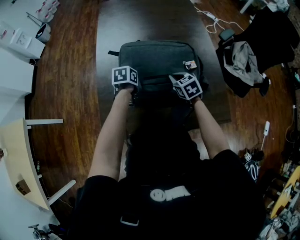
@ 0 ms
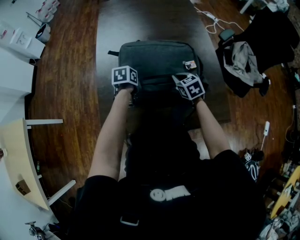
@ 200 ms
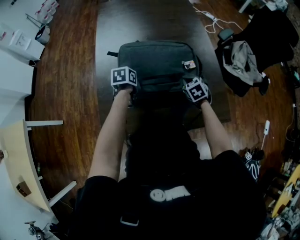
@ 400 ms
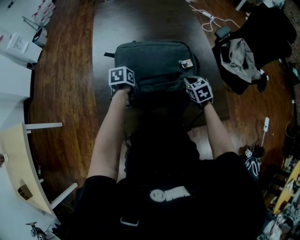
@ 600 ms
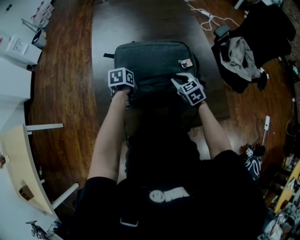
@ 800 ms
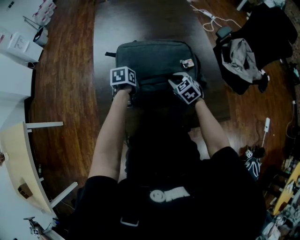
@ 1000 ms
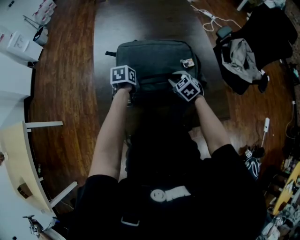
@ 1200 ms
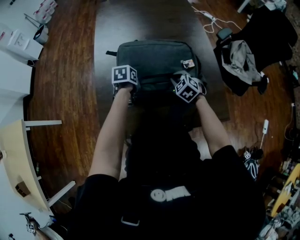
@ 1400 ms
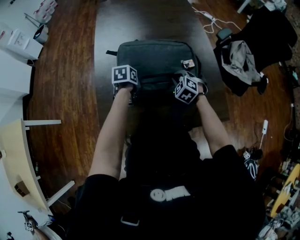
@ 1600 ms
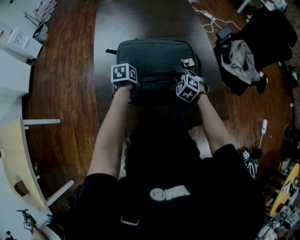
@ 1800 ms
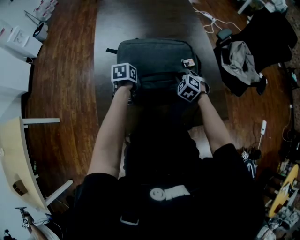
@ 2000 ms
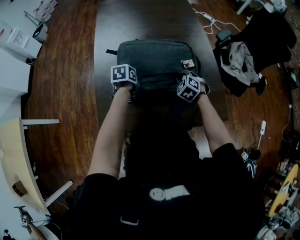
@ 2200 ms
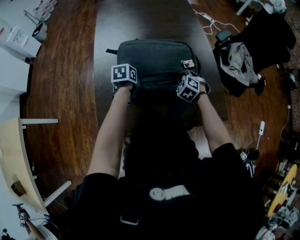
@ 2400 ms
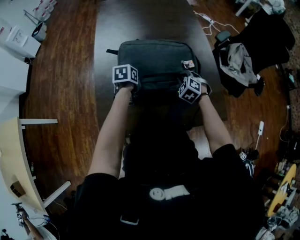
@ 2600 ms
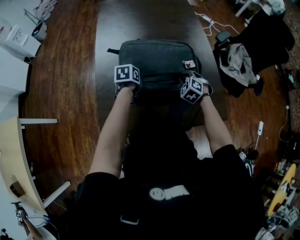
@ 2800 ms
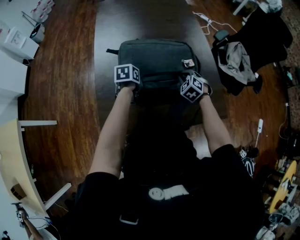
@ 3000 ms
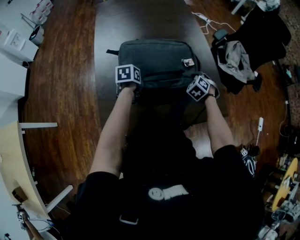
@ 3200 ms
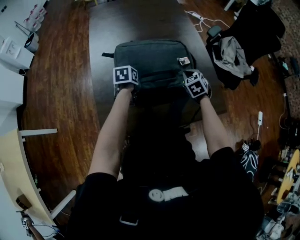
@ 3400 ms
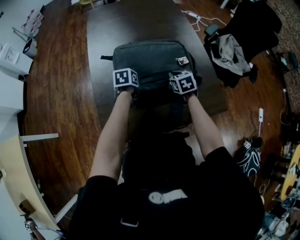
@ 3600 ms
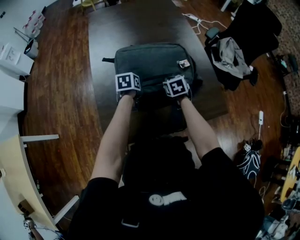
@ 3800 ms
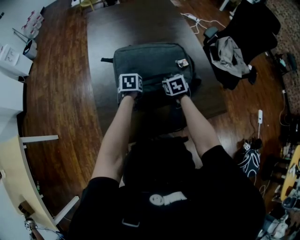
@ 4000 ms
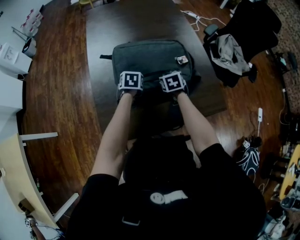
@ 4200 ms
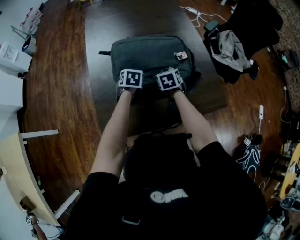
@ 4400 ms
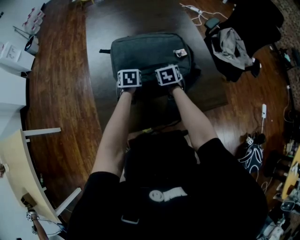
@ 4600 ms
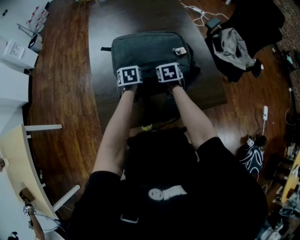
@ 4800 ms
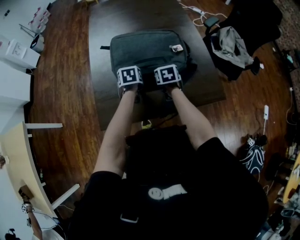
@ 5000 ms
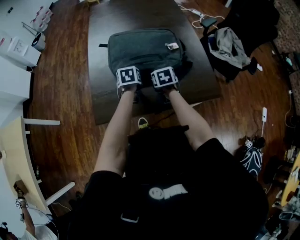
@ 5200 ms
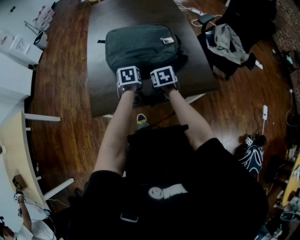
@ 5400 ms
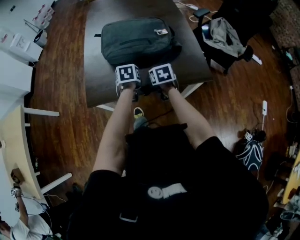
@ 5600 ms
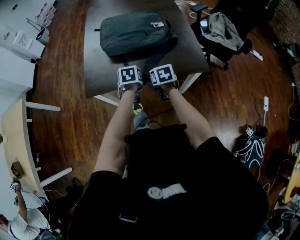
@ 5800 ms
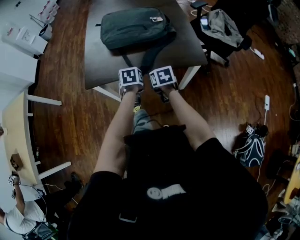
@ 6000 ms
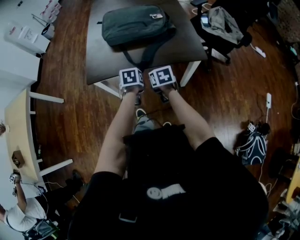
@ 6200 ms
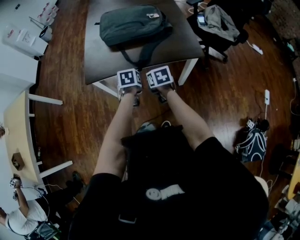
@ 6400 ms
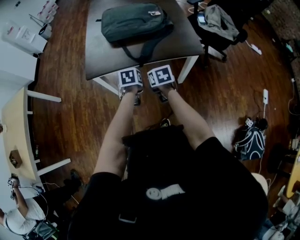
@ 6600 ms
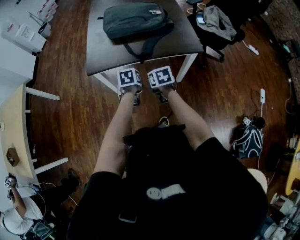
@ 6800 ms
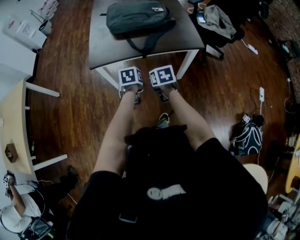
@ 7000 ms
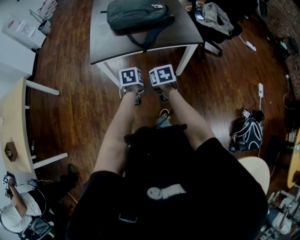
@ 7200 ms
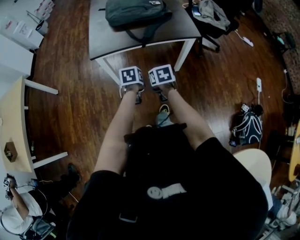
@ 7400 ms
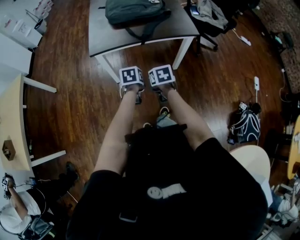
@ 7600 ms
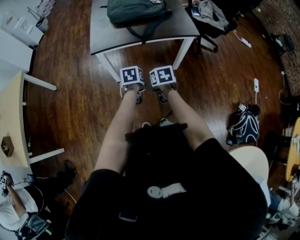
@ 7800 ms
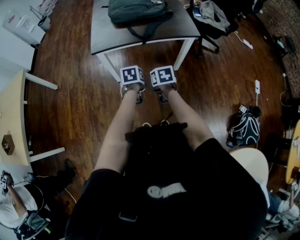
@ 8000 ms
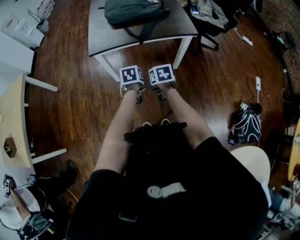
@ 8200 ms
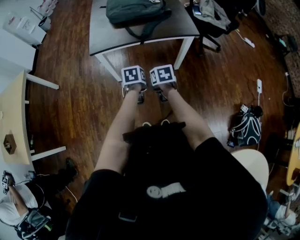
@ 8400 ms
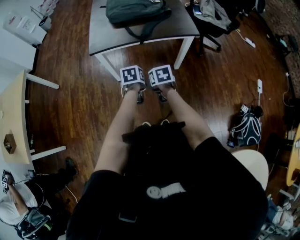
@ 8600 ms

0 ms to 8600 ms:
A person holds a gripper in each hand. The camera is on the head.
0 ms to 1400 ms: The right gripper reaches approximately 10 cm to the right, then returns, and swivels approximately 30 degrees.
1400 ms to 2800 ms: The grippers stay close to where they were, moving slightly.
2800 ms to 4400 ms: The left gripper swivels approximately 30 degrees. The right gripper is displaced to the left by about 5 cm, and rolls clockwise, seen from behind, by approximately 50 degrees.
4400 ms to 5800 ms: The grippers both shift backward by some 30 cm. The right gripper changes its angle by roughly 20 degrees.
5800 ms to 7200 ms: The grippers both shift backward by some 25 cm.
7200 ms to 8600 ms: Both grippers travel together backward, roughly 5 cm.

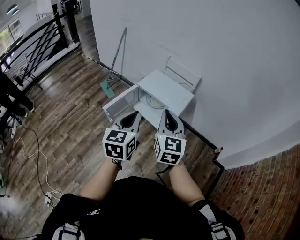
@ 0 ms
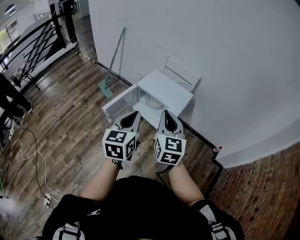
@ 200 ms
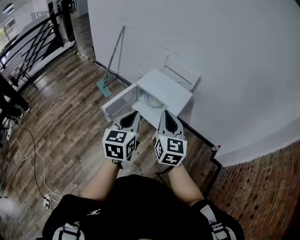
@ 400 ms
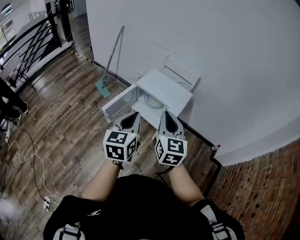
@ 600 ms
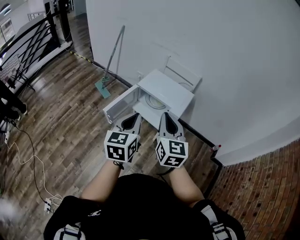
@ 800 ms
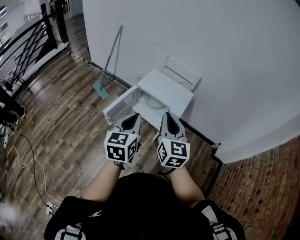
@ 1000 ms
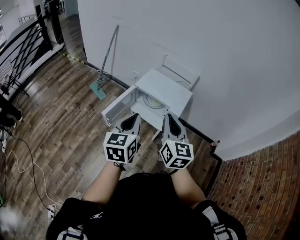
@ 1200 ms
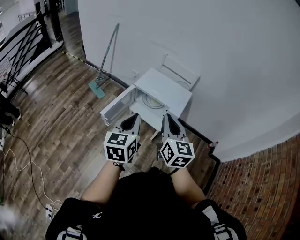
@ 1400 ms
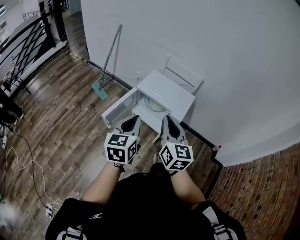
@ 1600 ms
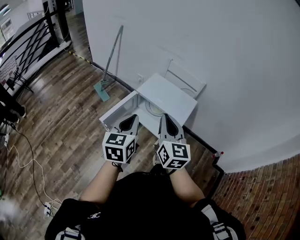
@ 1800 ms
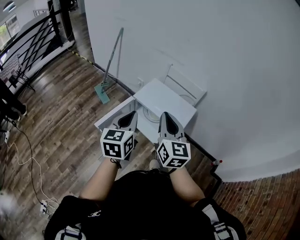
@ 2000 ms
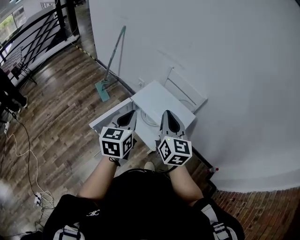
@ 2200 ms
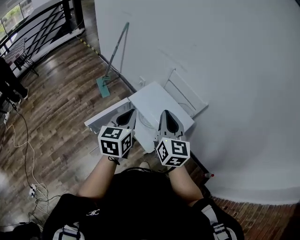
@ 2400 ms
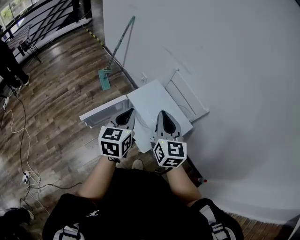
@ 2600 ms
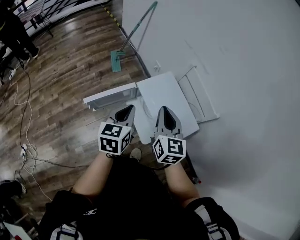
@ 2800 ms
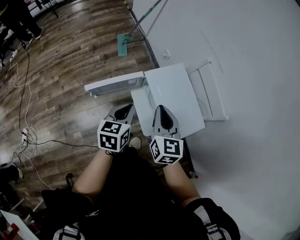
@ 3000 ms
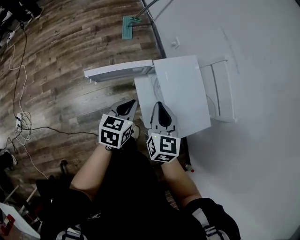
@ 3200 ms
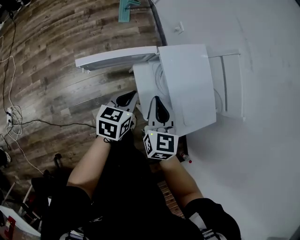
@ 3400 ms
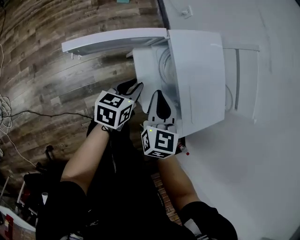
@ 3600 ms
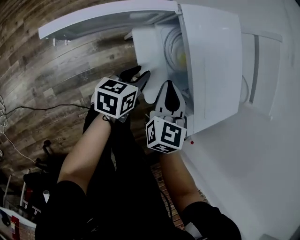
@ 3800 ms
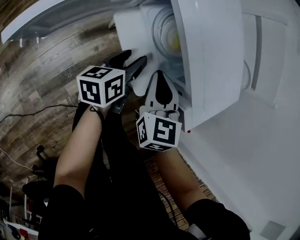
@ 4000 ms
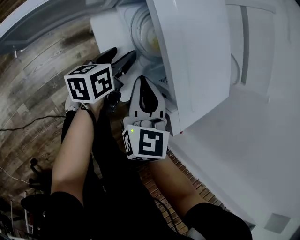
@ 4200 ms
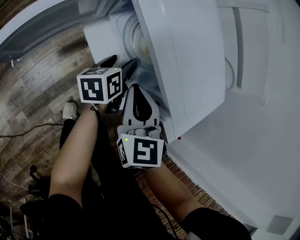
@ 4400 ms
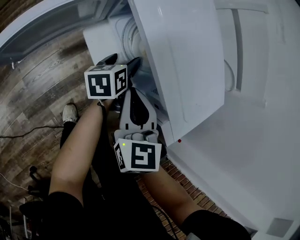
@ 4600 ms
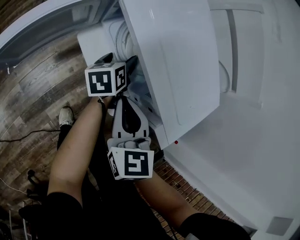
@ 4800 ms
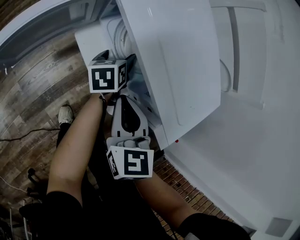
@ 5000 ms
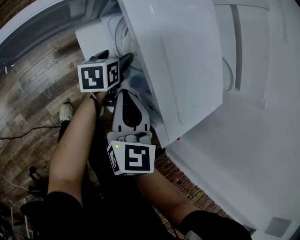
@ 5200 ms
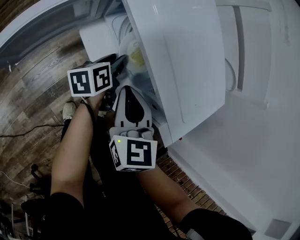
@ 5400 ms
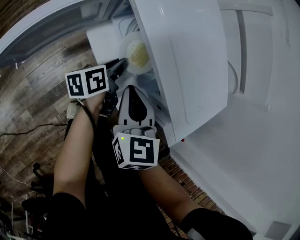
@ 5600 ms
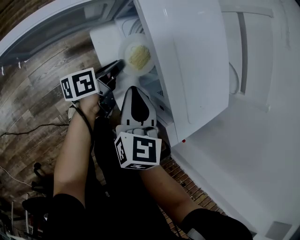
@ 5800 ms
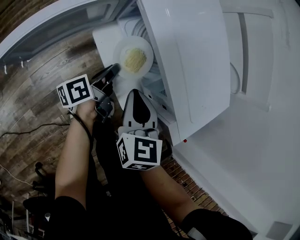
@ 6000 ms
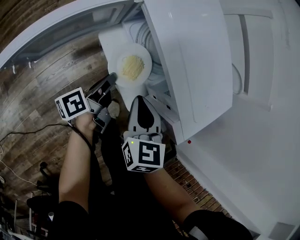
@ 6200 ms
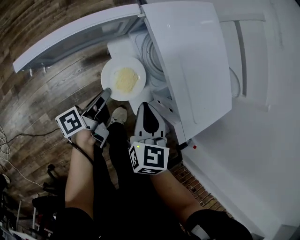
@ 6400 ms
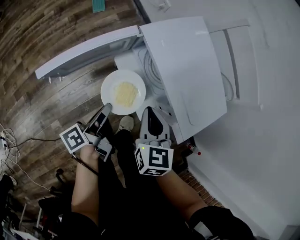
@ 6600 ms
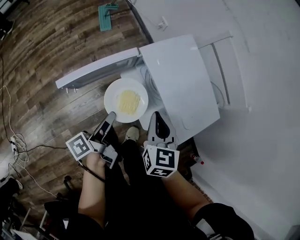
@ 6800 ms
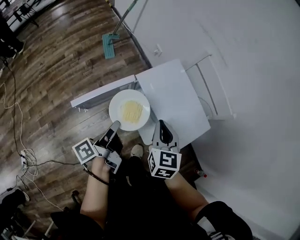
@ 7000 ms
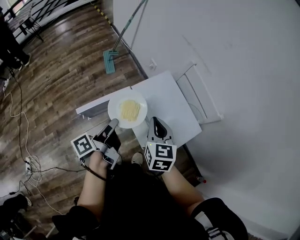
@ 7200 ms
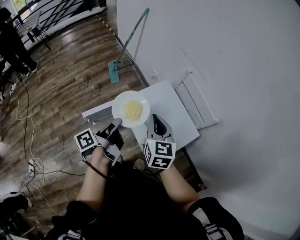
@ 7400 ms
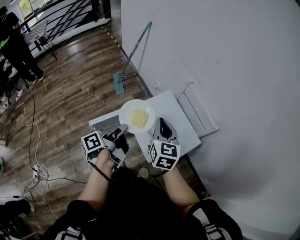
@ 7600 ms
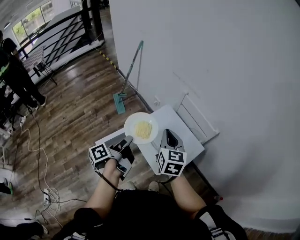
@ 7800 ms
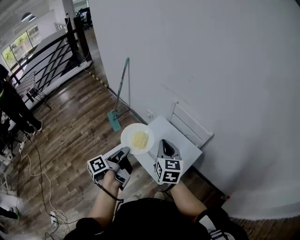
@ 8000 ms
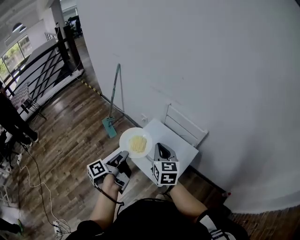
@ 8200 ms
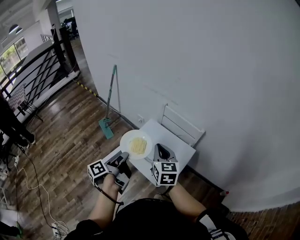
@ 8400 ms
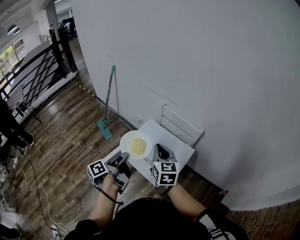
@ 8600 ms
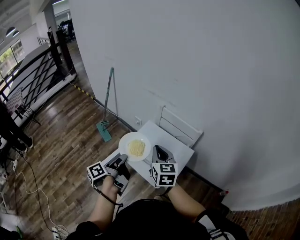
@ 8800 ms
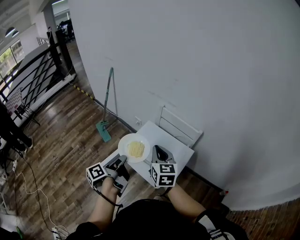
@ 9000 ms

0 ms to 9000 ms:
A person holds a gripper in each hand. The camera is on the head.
0 ms to 1600 ms: The right gripper heads to the left, covering about 5 cm; the left gripper is displaced to the left and forward by about 10 cm.
1600 ms to 3000 ms: The right gripper shifts by some 30 cm, and turns by approximately 30 degrees; the left gripper changes place by about 25 cm, and turns by about 30 degrees.
3000 ms to 4400 ms: The grippers both shift downward by about 35 cm. The right gripper rotates roughly 20 degrees. The left gripper swivels roughly 30 degrees, and opens.
4400 ms to 6000 ms: The left gripper ends up approximately 5 cm from where it was, changes its angle by roughly 30 degrees, and closes its fingers.
6000 ms to 7600 ms: Both grippers move upward, roughly 40 cm. The right gripper rotates some 20 degrees.
7600 ms to 9000 ms: The right gripper changes place by approximately 5 cm.

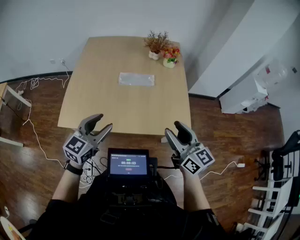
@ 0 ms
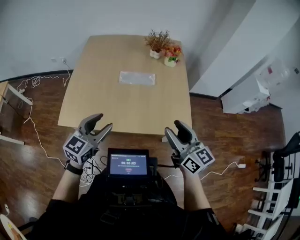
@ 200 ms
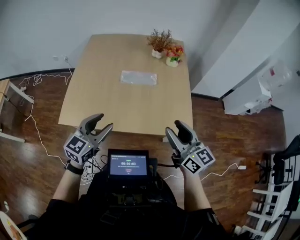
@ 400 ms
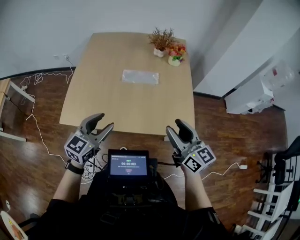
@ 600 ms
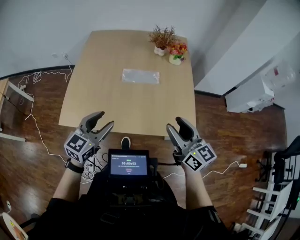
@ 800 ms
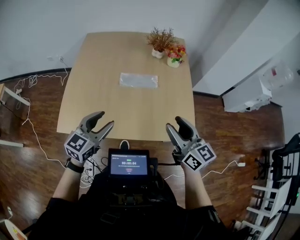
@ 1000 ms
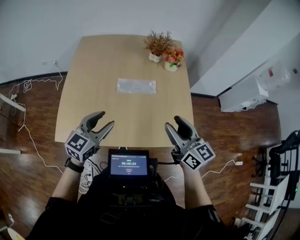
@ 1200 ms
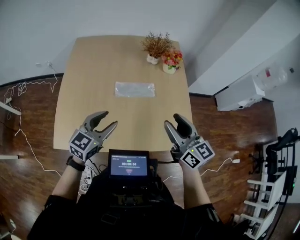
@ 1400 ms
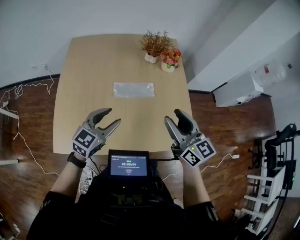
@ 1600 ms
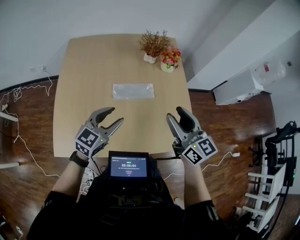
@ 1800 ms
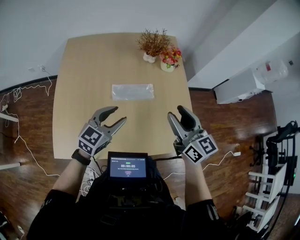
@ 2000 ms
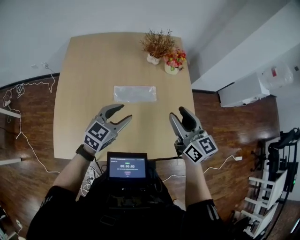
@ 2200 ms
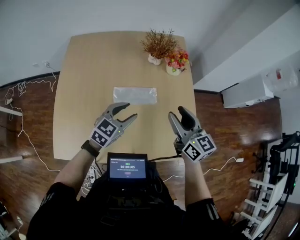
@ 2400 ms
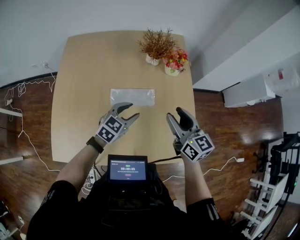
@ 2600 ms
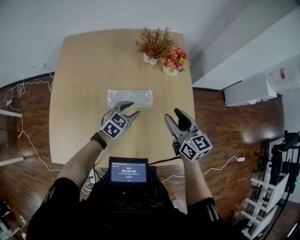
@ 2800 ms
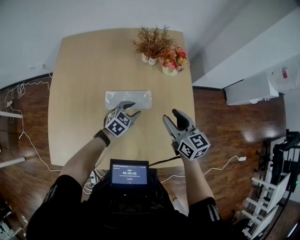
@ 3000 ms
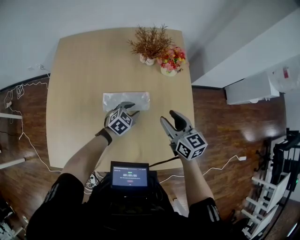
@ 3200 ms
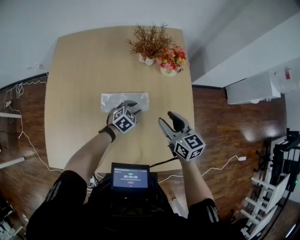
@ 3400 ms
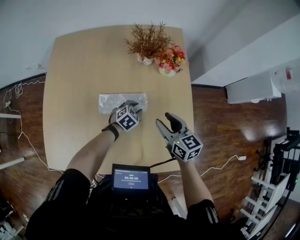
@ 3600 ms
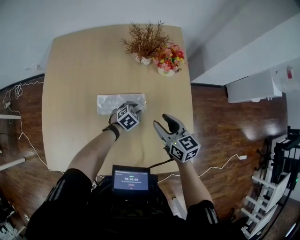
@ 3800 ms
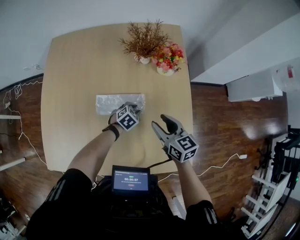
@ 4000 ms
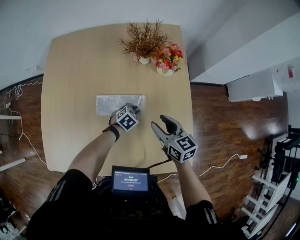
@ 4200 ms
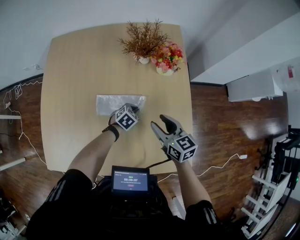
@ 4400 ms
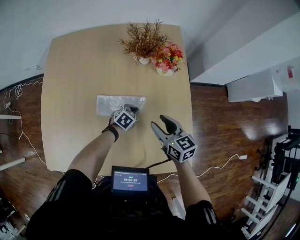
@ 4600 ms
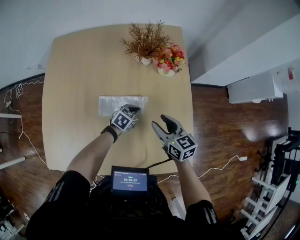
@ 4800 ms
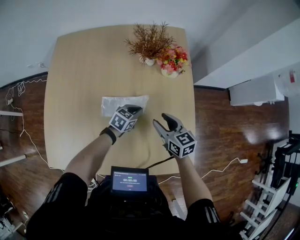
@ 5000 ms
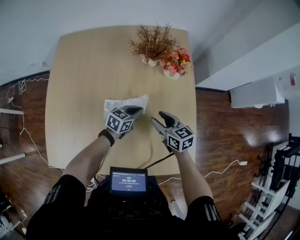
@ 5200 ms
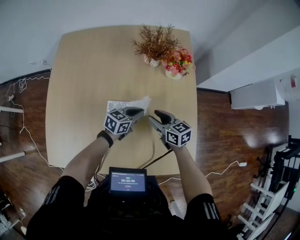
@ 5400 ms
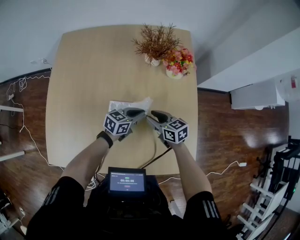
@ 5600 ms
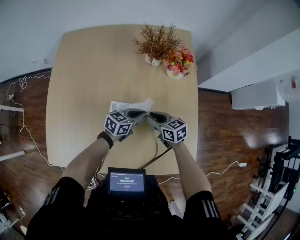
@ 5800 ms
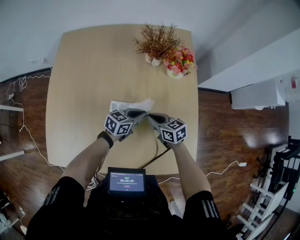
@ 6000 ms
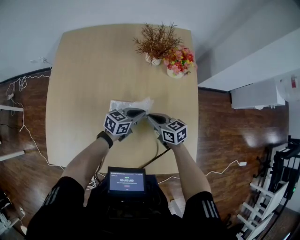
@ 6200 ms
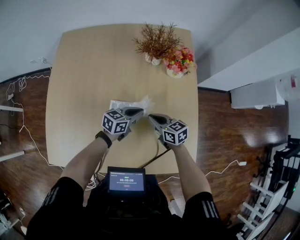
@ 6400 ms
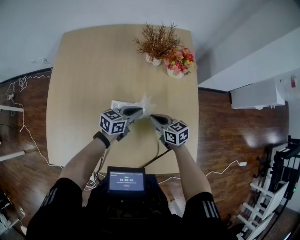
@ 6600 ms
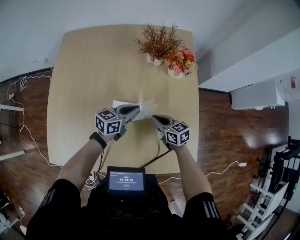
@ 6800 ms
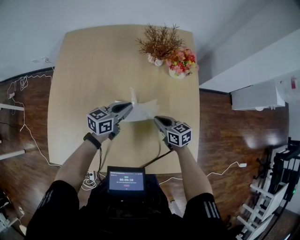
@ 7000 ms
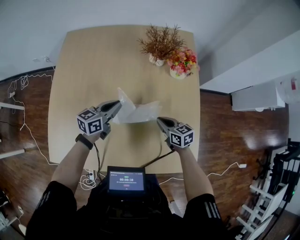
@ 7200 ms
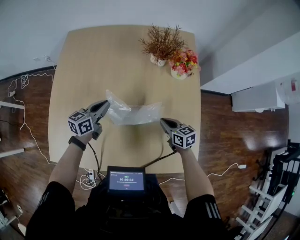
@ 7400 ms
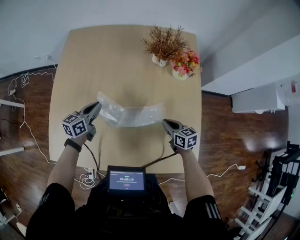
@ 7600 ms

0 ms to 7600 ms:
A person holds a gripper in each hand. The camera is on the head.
0 ms to 1600 ms: The two grippers go some 20 cm forward.
1600 ms to 3000 ms: The right gripper is displaced forward and downward by roughly 20 cm, while the left gripper travels downward, forward and to the right by some 30 cm, and swivels some 30 degrees.
3000 ms to 4600 ms: Both grippers travel together downward, some 10 cm. The left gripper closes its fingers.
4600 ms to 6000 ms: The left gripper heads upward, covering approximately 10 cm, and turns by approximately 30 degrees. Meanwhile the right gripper moves downward and to the left, some 10 cm, and closes up.
6000 ms to 7600 ms: The left gripper moves to the left, approximately 25 cm, and rotates some 30 degrees, while the right gripper goes approximately 5 cm to the right.
